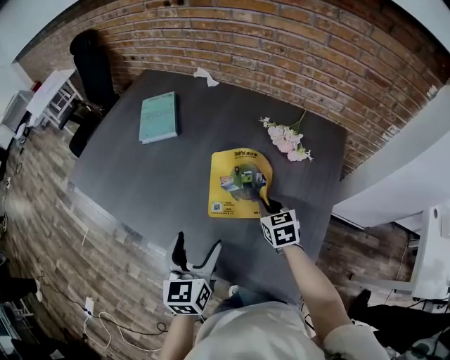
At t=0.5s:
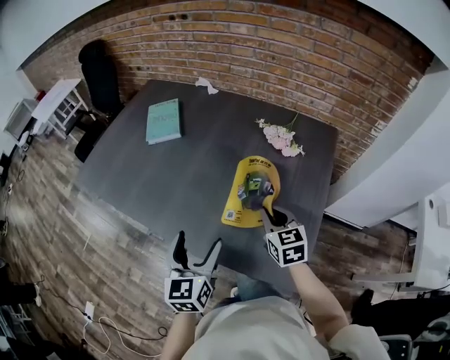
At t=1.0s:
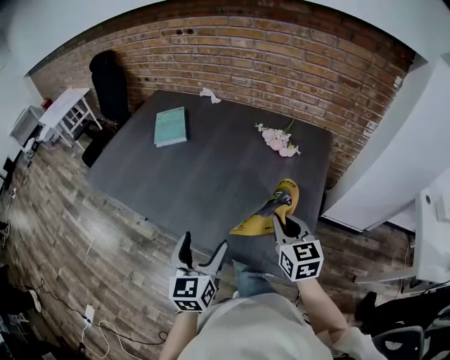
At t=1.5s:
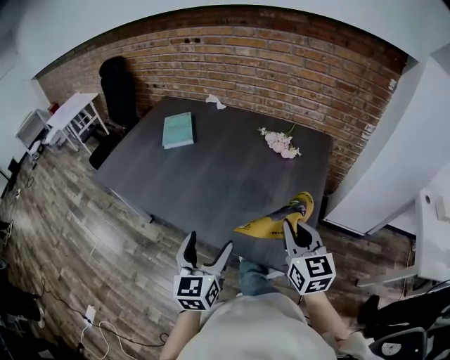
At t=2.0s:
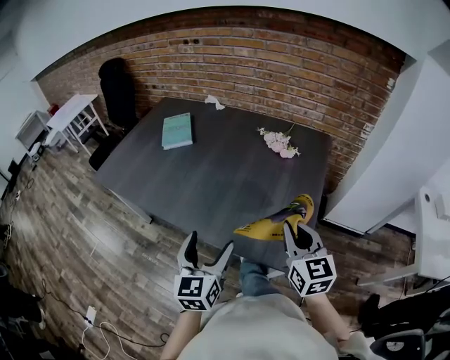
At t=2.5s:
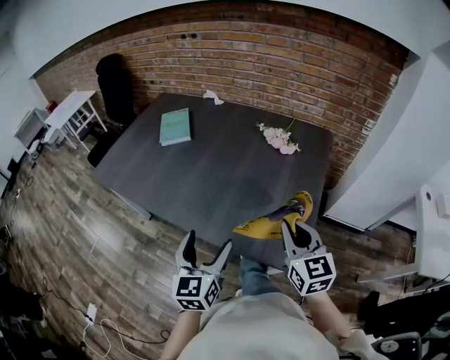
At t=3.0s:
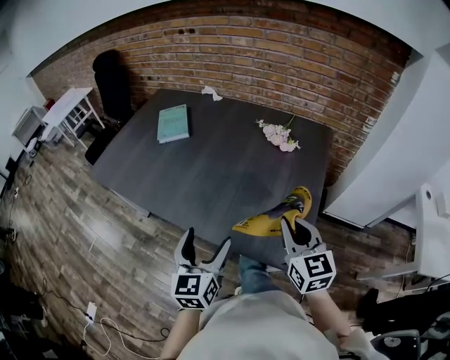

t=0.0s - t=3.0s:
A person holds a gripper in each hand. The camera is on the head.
t=0.0s - t=1.5s: The left gripper shifts roughly 15 cm backward. Meanwhile the right gripper shifts roughly 30 cm backward and upward, and rotates roughly 30 degrees.
t=1.5s - t=3.0s: The grippers move only a little.

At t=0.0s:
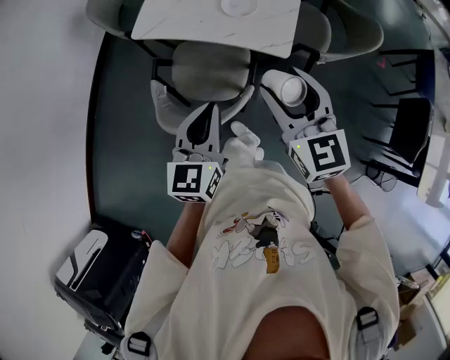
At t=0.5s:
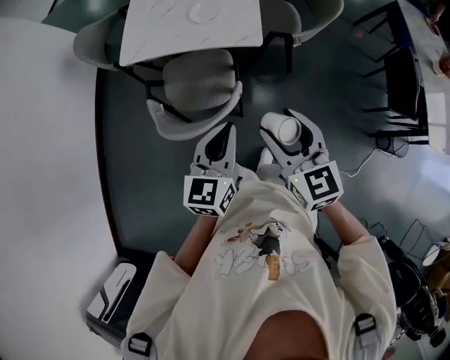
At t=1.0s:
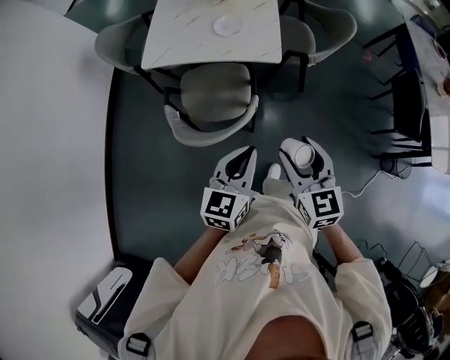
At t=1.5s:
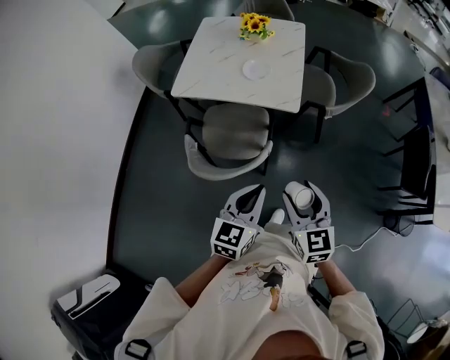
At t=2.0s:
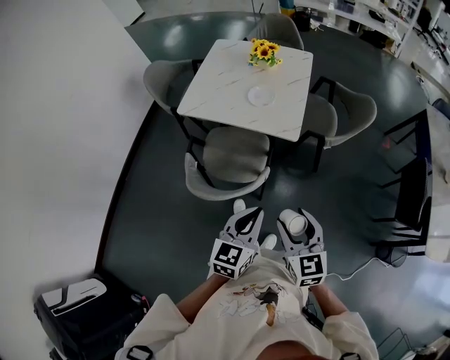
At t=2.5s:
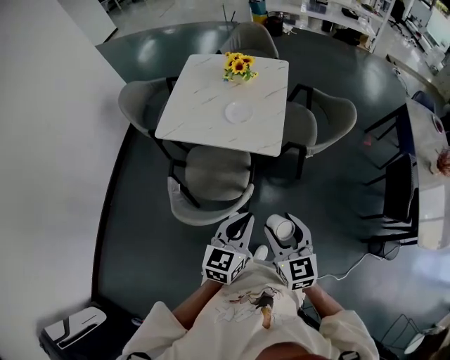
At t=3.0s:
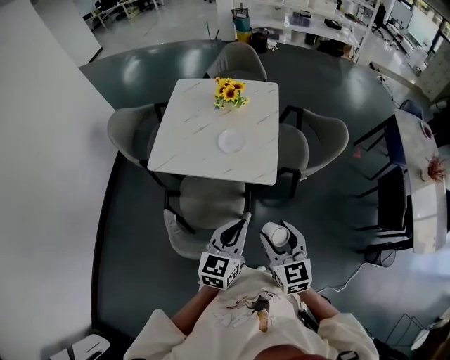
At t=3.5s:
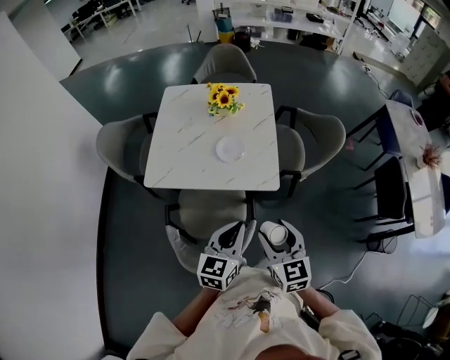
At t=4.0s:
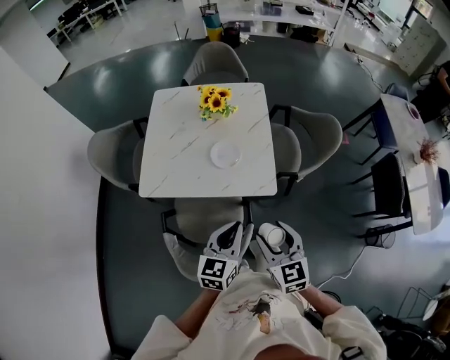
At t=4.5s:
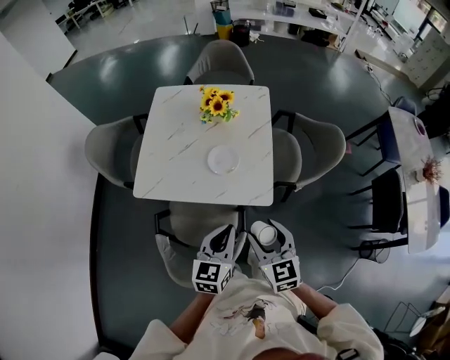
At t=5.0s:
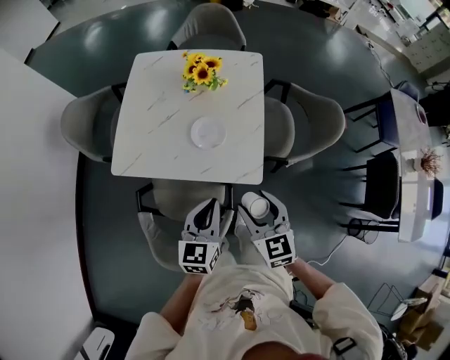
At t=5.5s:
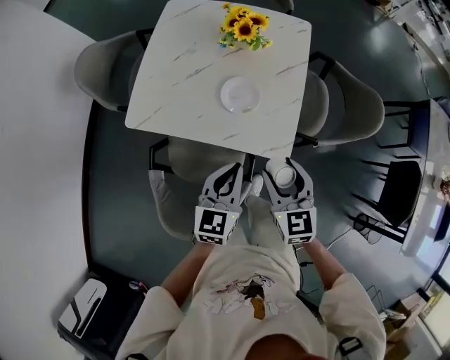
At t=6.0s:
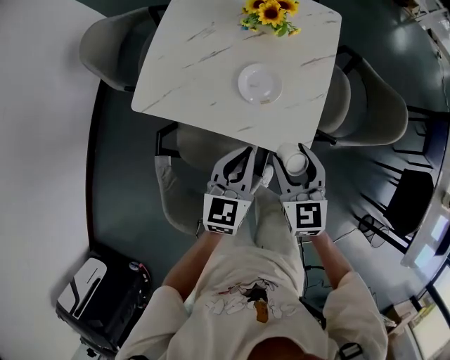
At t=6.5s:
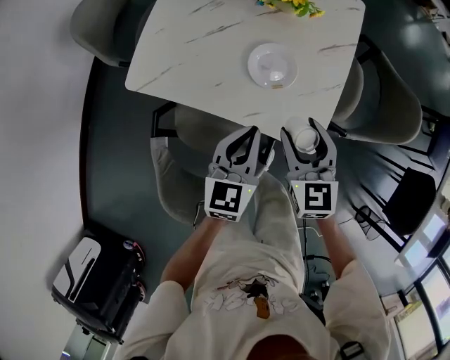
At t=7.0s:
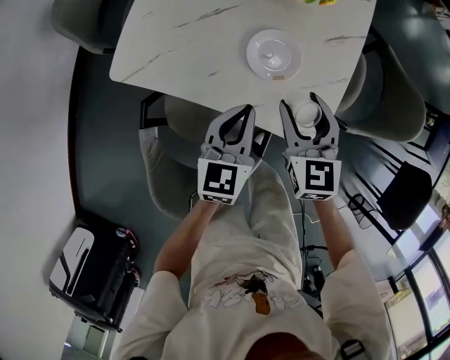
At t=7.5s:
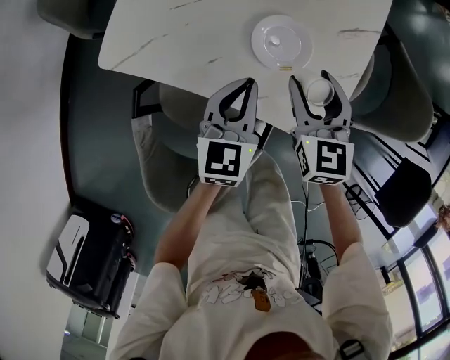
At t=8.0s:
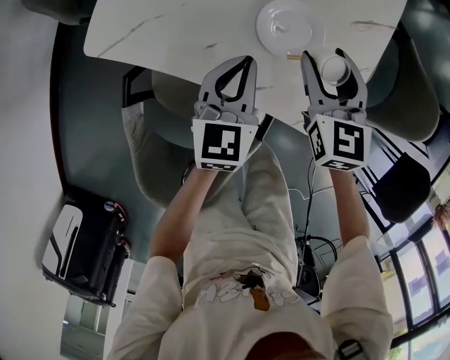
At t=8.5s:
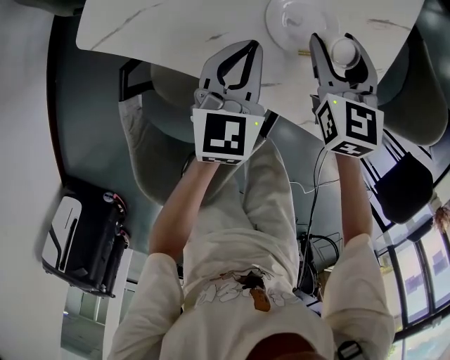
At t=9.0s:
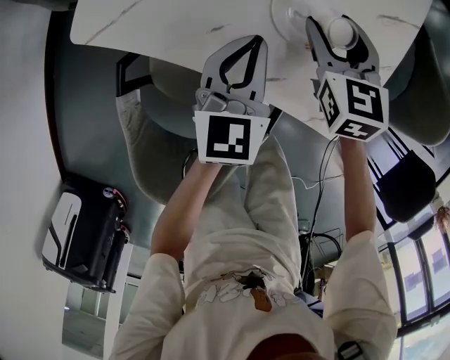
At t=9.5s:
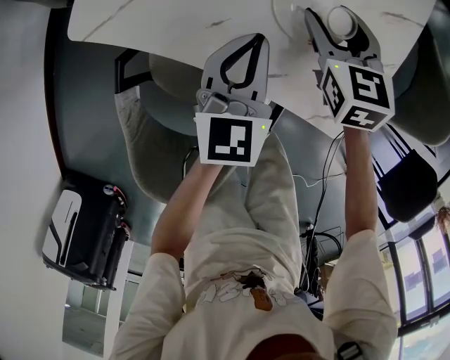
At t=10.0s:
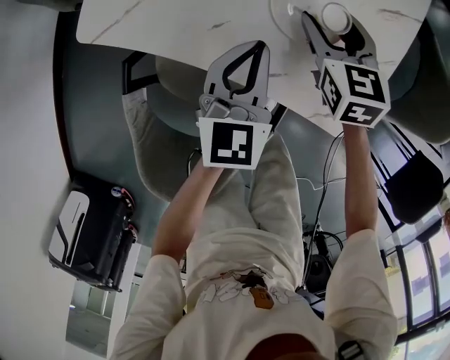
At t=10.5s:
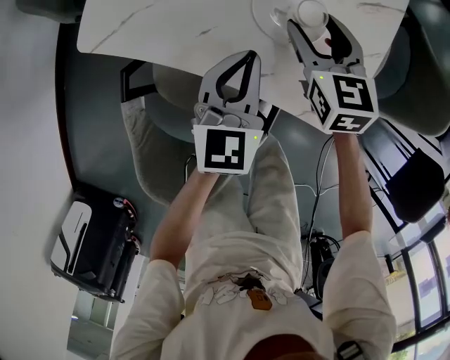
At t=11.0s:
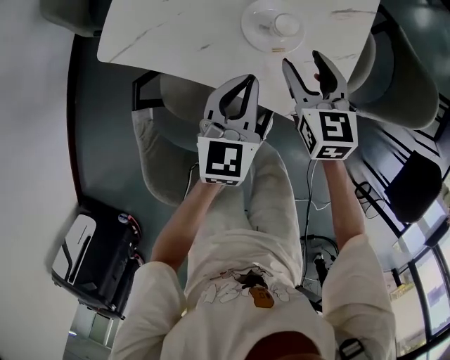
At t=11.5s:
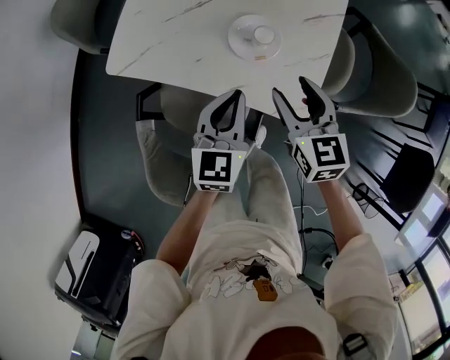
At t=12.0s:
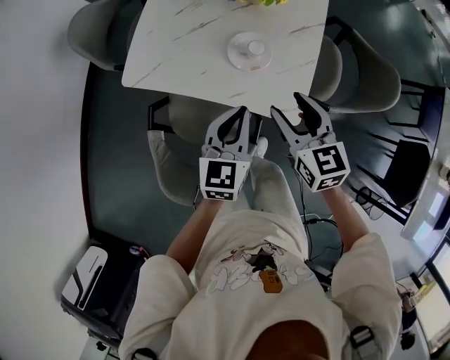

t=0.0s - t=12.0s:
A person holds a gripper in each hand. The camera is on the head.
t=0.0s - t=2.0s: The right gripper is displaced backward by some 20 cm; the left gripper is displaced backward and to the right by about 15 cm.
t=2.0s - t=4.0s: The grippers both shift forward and to the left by approximately 25 cm.
t=4.0s - t=6.0s: The two grippers go roughly 20 cm forward and downward.
t=6.0s - t=8.0s: The right gripper goes about 20 cm forward and downward. Meanwhile the left gripper shifts about 20 cm downward and forward.
t=8.0s - t=10.0s: The right gripper moves downward, approximately 10 cm.
t=10.0s - t=12.0s: The two grippers go some 25 cm upward and backward.

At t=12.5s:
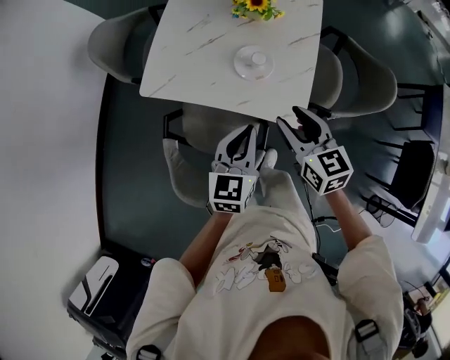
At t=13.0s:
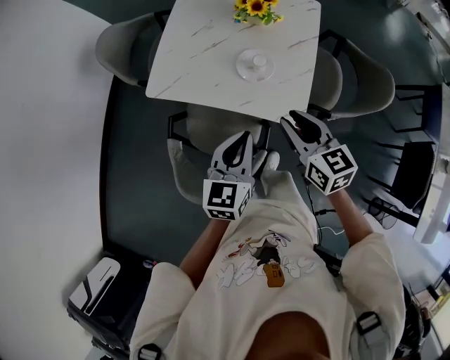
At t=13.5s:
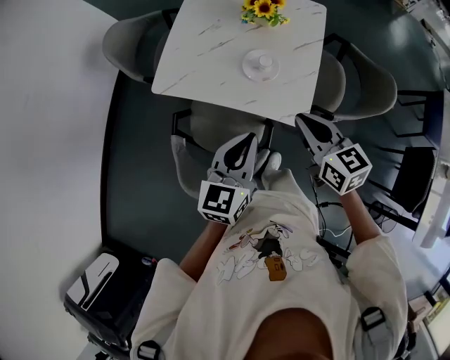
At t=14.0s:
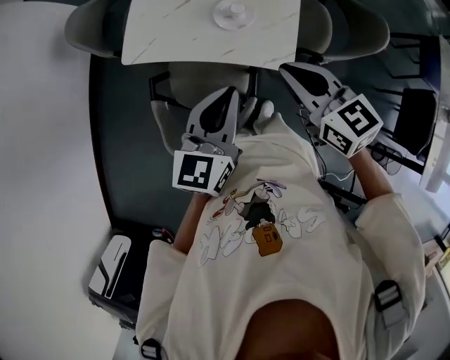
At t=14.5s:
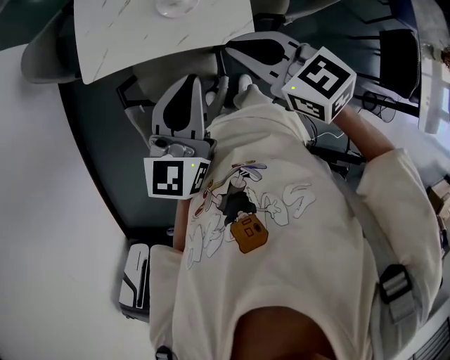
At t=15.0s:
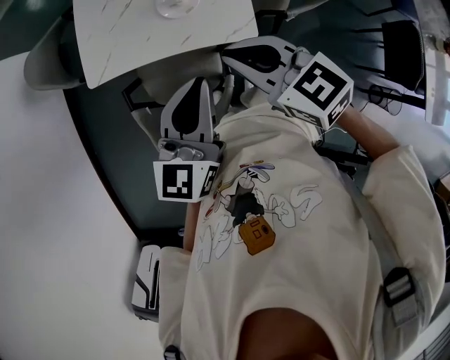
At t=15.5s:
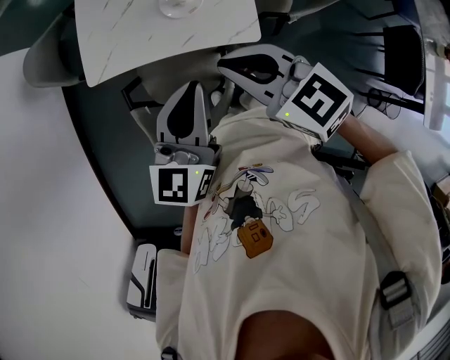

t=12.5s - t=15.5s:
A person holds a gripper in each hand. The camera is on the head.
t=12.5s - t=14.0s: Both grippers travel together upward, roughly 10 cm. The right gripper closes.
t=14.0s - t=15.5s: The grippers move only a little.

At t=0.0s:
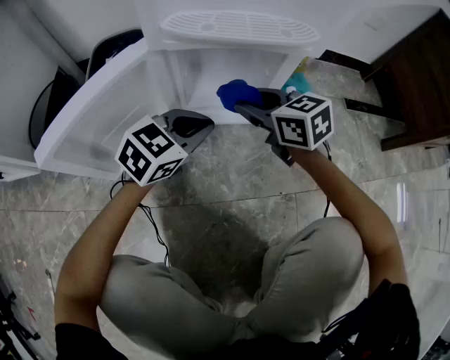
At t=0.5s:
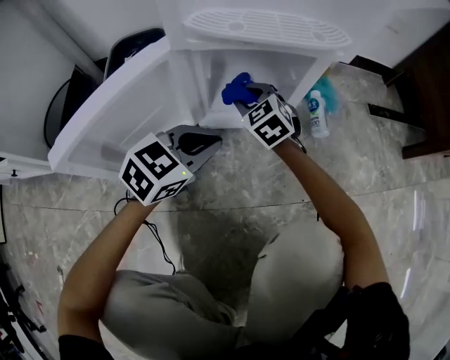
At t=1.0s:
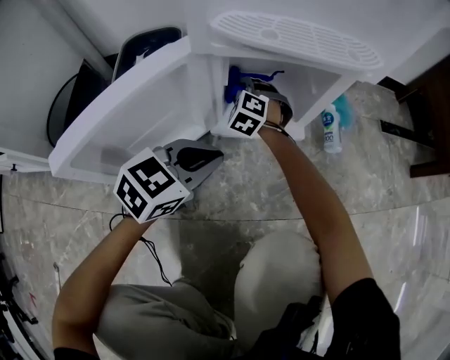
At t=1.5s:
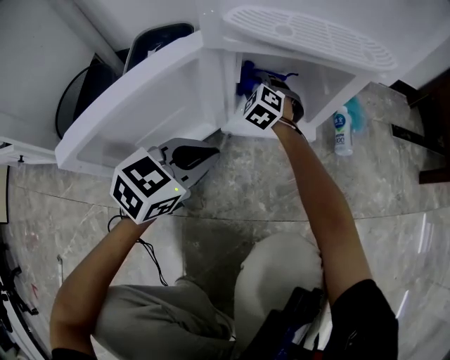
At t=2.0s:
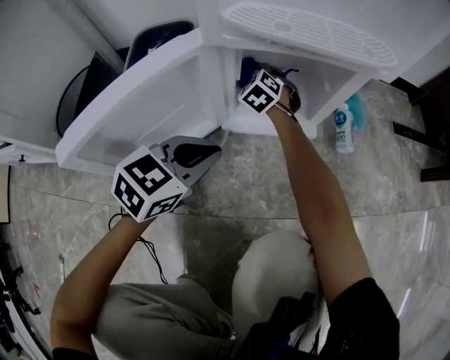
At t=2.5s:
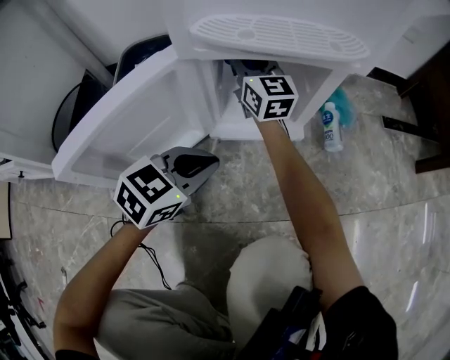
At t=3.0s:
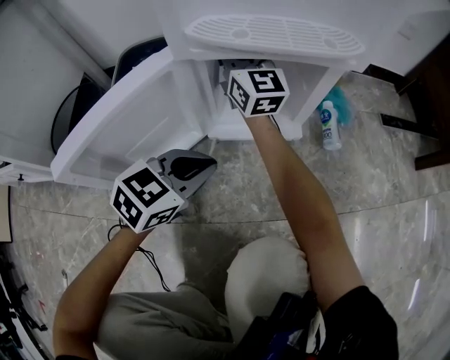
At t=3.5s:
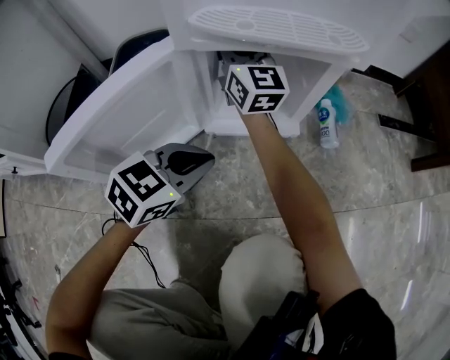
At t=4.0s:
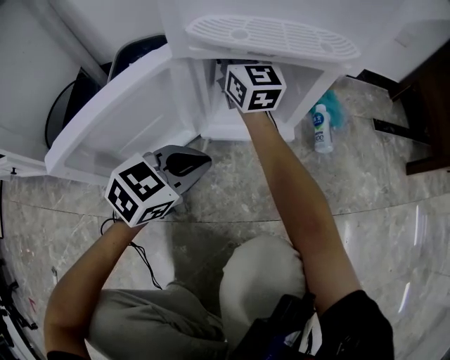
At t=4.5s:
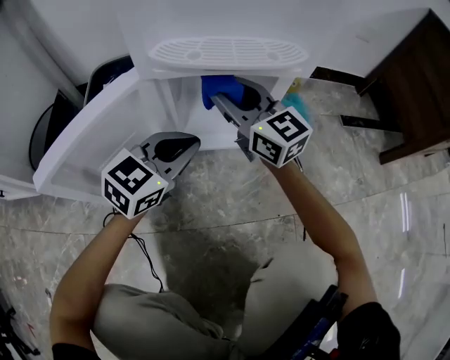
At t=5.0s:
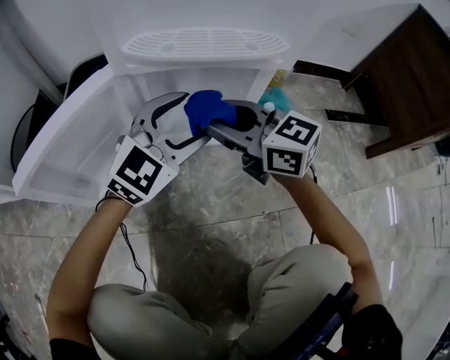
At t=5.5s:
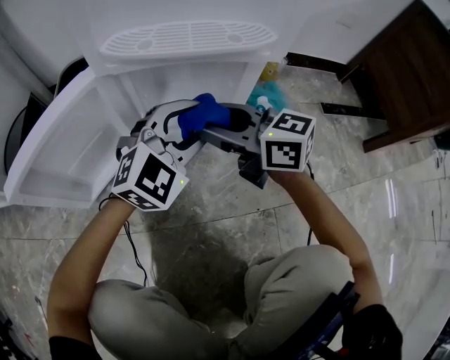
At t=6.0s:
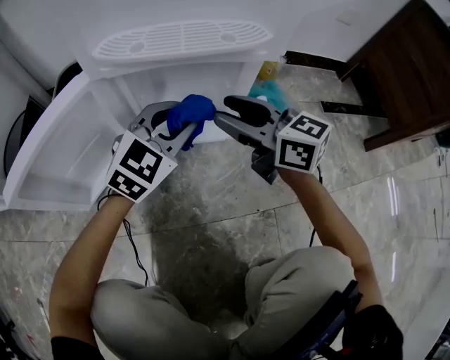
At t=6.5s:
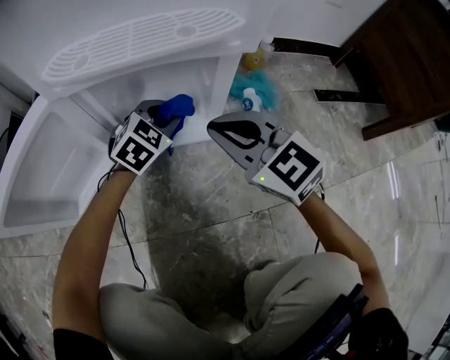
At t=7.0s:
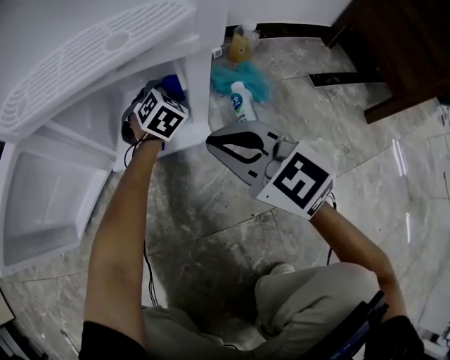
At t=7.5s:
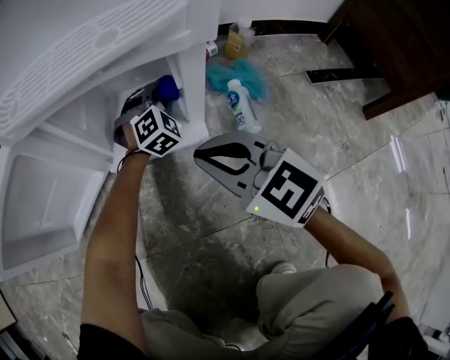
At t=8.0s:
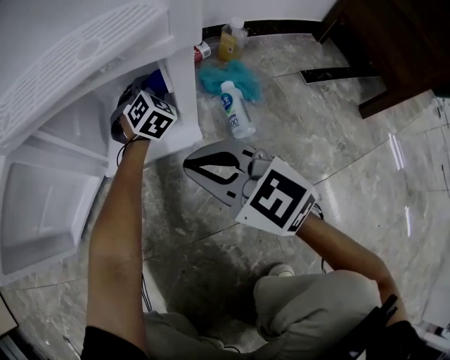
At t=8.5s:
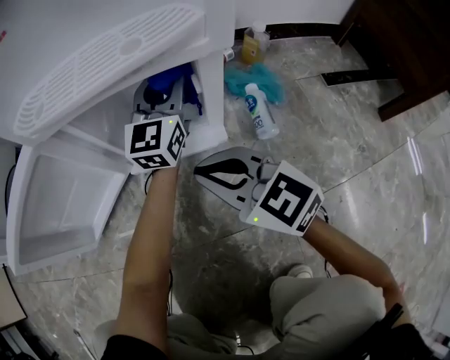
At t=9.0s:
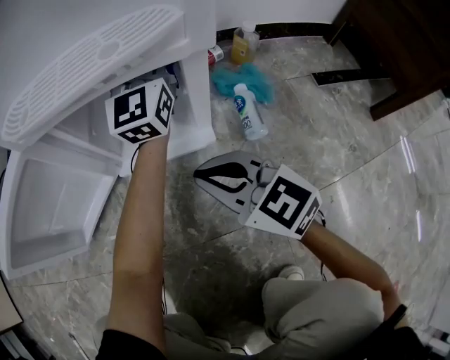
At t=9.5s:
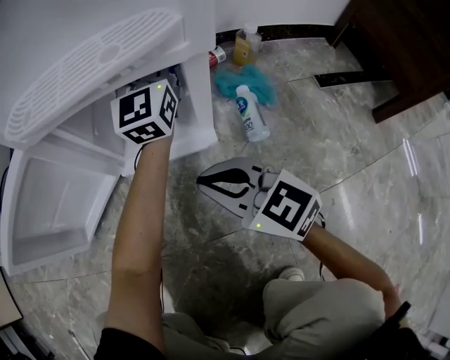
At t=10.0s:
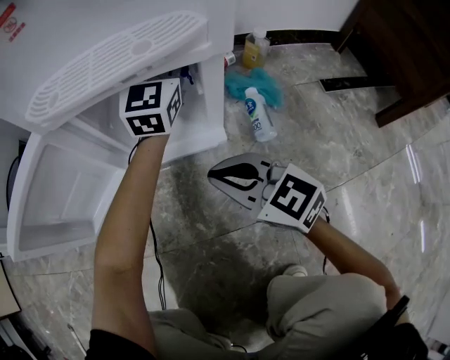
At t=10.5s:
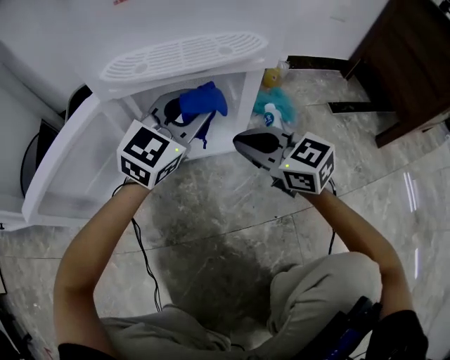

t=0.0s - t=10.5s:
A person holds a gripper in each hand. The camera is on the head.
t=0.0s - t=2.0s: The right gripper goes about 25 cm downward, forward and to the left, and swivels some 50 degrees. The left gripper is displaced to the left by about 5 cm.
t=2.0s - t=4.0s: The right gripper shifts roughly 25 cm upward, and angles its fingers upward, by some 50 degrees.
t=4.0s - t=6.5s: The left gripper moves forward, to the right and downward, roughly 20 cm, turns by some 20 degrees, and opens, then closes once more; the right gripper is displaced backward and to the right by about 25 cm, angles its fingers downward, by roughly 30 degrees, and closes its fingers.
t=6.5s - t=8.5s: The right gripper ends up some 5 cm from where it was. Meanwhile the left gripper goes some 15 cm upward, forward and to the right, and points its fingers roughly 50 degrees further upward.
t=8.5s - t=10.5s: The left gripper travels backward, to the left and upward by approximately 15 cm, and changes its angle by about 30 degrees.
